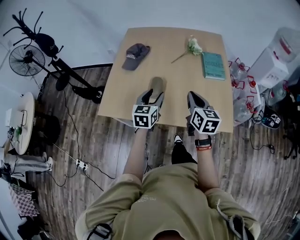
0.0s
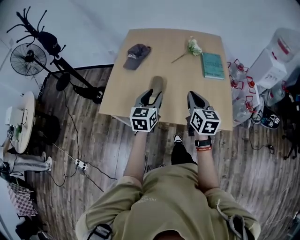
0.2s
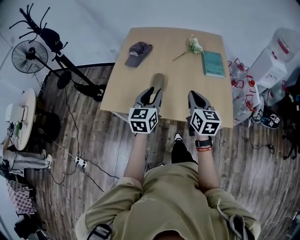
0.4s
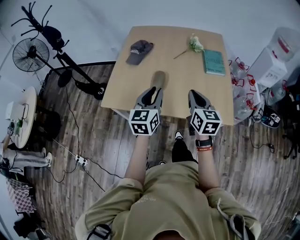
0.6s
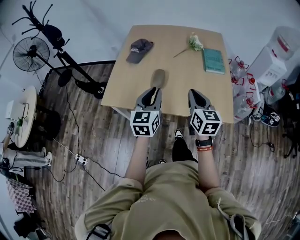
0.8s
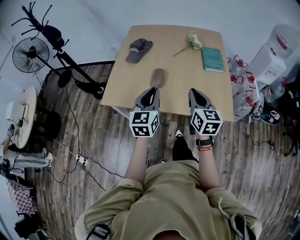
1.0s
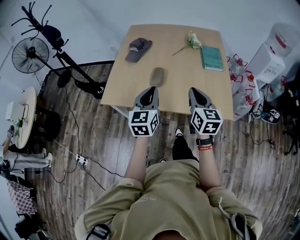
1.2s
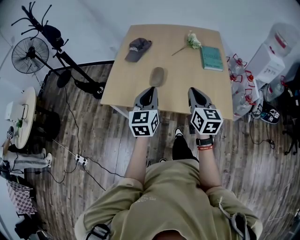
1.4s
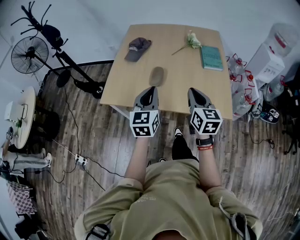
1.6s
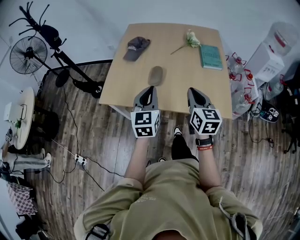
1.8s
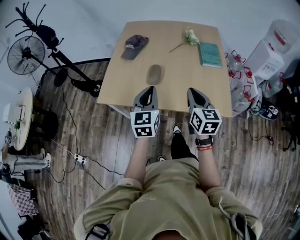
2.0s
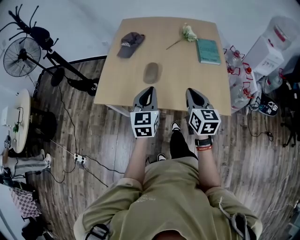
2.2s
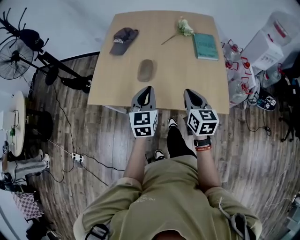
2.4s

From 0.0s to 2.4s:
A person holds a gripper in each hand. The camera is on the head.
From 0.0s to 1.2s: The left gripper travels backward and upward by roughly 15 cm, and closes. Meanwhile the right gripper moves backward, some 10 cm.
From 1.2s to 2.4s: The right gripper heads downward and forward, covering roughly 10 cm. The left gripper travels forward and downward by about 10 cm.

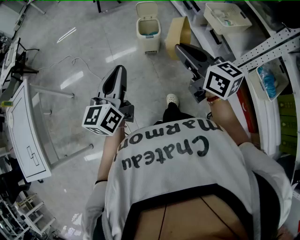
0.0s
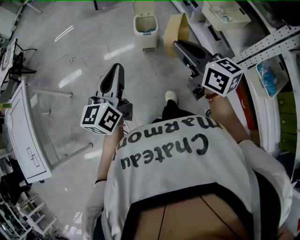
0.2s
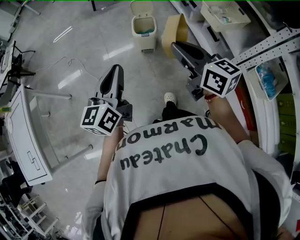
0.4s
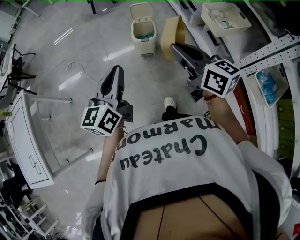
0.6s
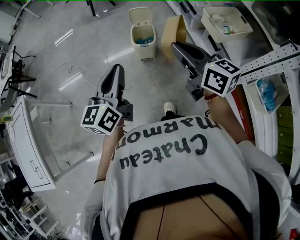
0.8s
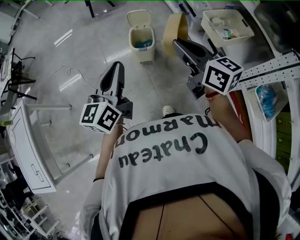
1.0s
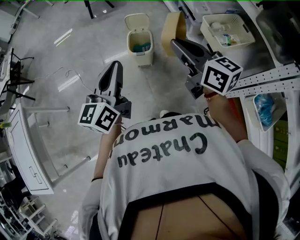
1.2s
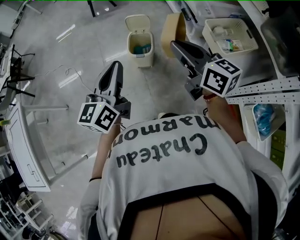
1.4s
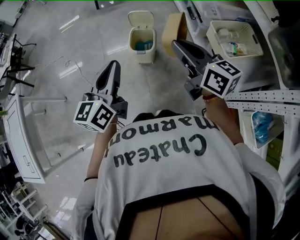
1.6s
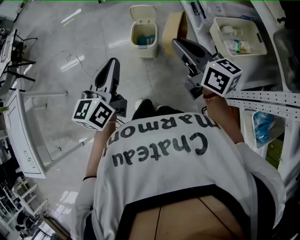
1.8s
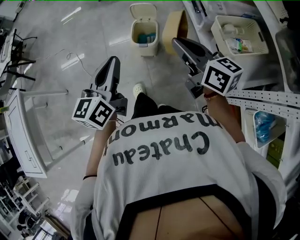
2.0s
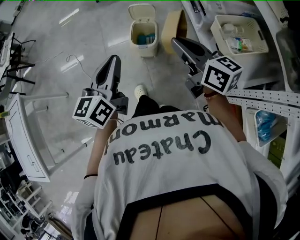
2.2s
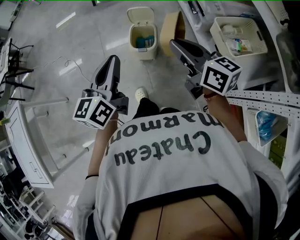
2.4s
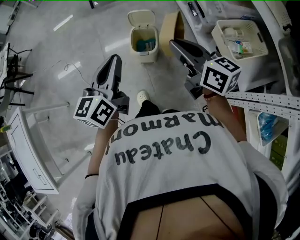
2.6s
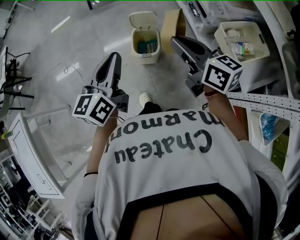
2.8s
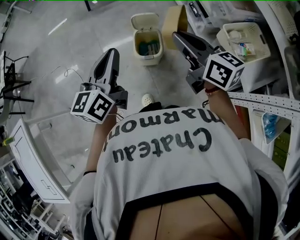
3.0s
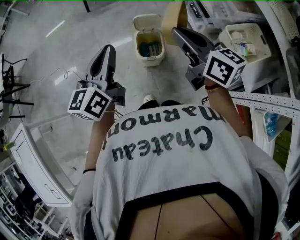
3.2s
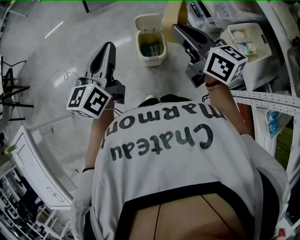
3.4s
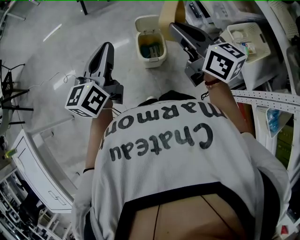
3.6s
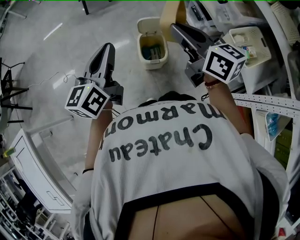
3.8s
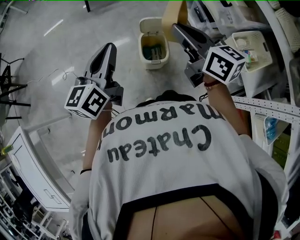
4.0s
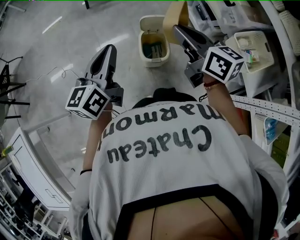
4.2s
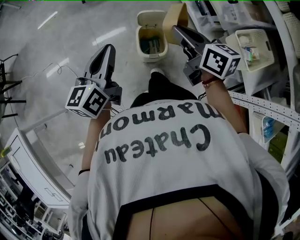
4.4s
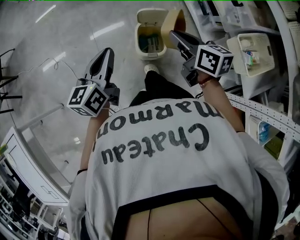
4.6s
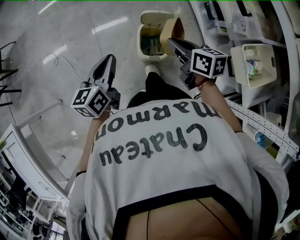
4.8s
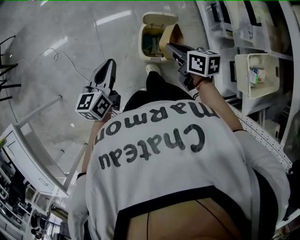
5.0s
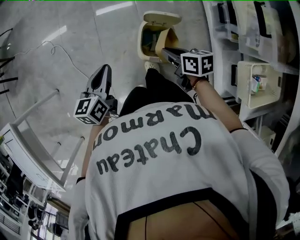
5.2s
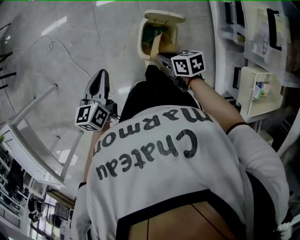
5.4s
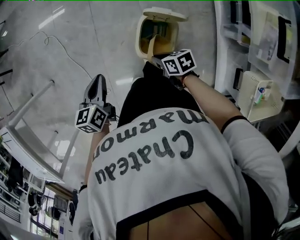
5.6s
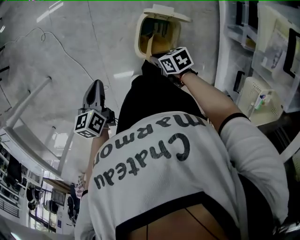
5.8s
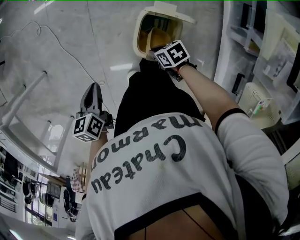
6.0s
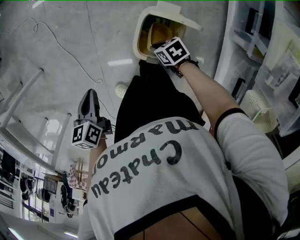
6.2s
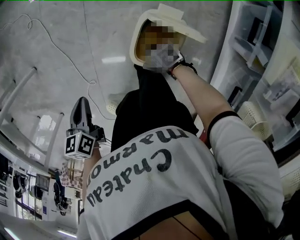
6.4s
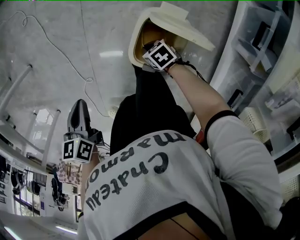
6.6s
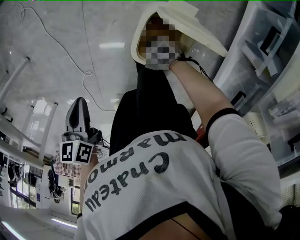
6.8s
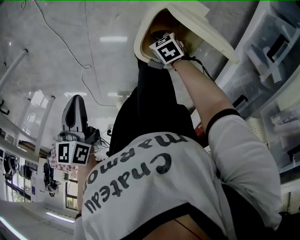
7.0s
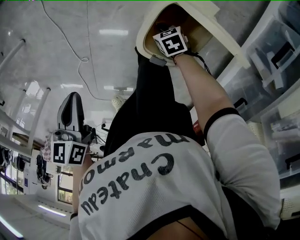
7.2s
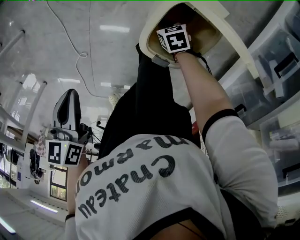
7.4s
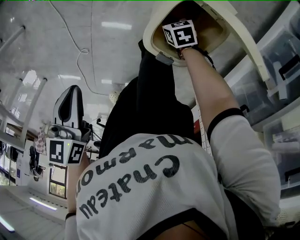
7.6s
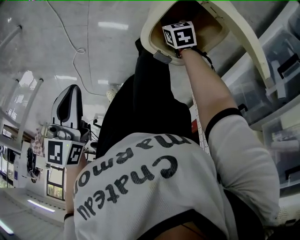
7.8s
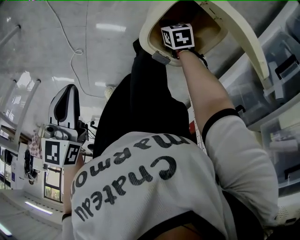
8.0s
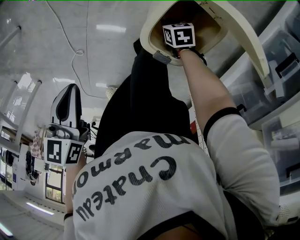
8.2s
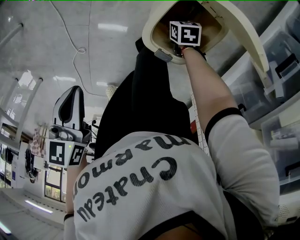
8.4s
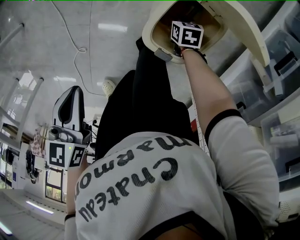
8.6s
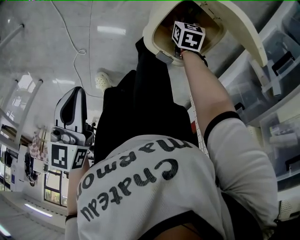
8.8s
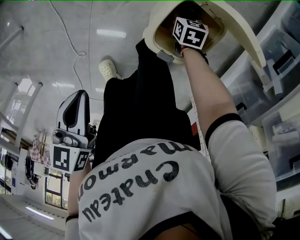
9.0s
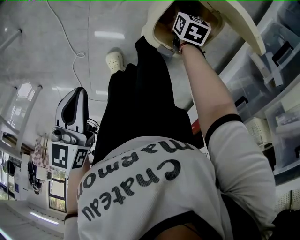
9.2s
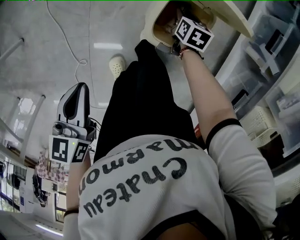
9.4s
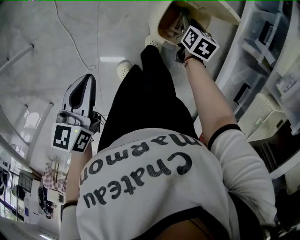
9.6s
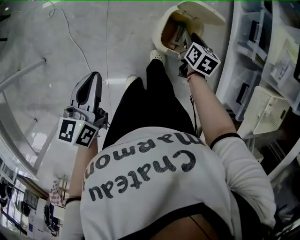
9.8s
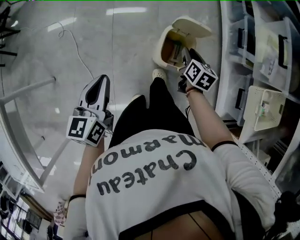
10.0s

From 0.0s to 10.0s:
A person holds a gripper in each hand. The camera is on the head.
From 0.0s to 1.4s: The grippers both shift forward and to the right by about 25 cm.
From 1.4s to 2.8s: Both grippers move forward, roughly 10 cm.
From 2.8s to 4.2s: Both grippers travel together forward and to the left, roughly 15 cm.
From 4.2s to 5.8s: Both grippers move downward, some 40 cm. The left gripper tilts its fingers some 40 degrees downward; the right gripper angles its fingers downward, by some 40 degrees.
From 5.8s to 7.2s: The two grippers travel together, to the left, roughly 50 cm. The right gripper heads downward, covering some 25 cm, and turns by about 30 degrees.
From 7.2s to 8.6s: The right gripper heads to the right, covering roughly 5 cm, changes its angle by some 20 degrees, and opens its fingers.
From 8.6s to 10.0s: The left gripper moves upward, some 20 cm, and angles its fingers upward, by roughly 30 degrees. The right gripper goes roughly 40 cm upward, and swivels some 50 degrees.

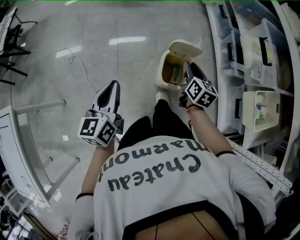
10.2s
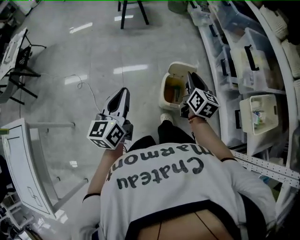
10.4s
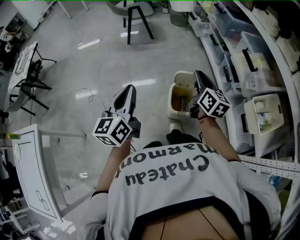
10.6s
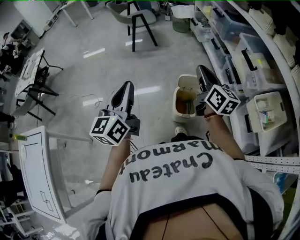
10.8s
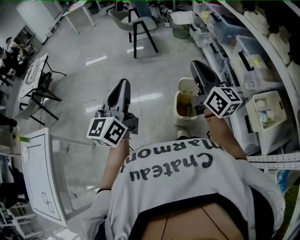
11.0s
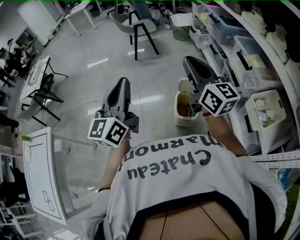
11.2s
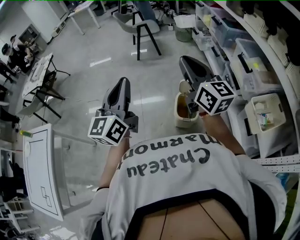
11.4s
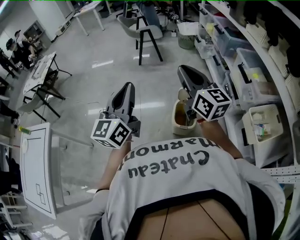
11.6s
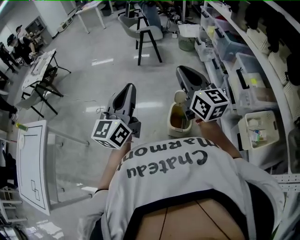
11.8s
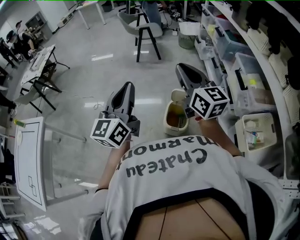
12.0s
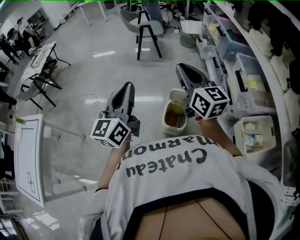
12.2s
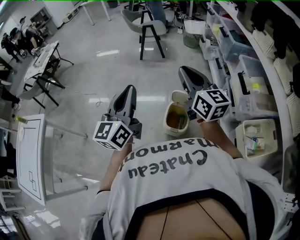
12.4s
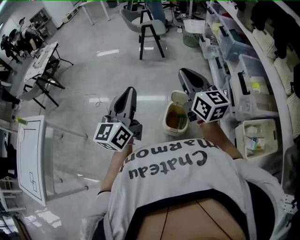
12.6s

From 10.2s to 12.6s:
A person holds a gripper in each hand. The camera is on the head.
From 10.2s to 11.4s: The grippers both shift upward by approximately 30 cm. The right gripper tilts its fingers approximately 40 degrees upward. Meanwhile the left gripper changes its angle by about 30 degrees.
From 11.4s to 12.6s: The left gripper shifts approximately 10 cm to the right. Meanwhile the right gripper shifts approximately 10 cm to the right and forward.

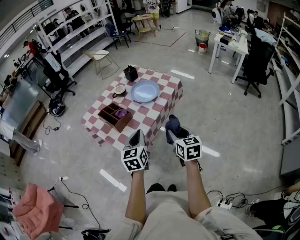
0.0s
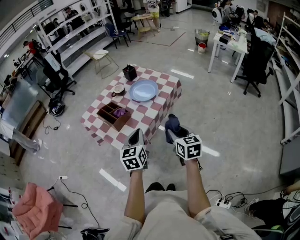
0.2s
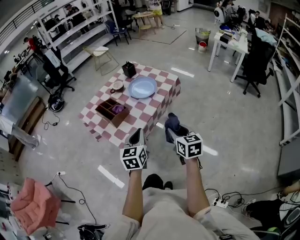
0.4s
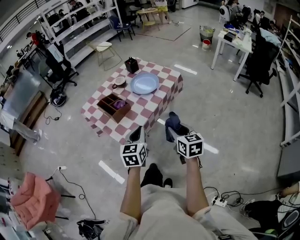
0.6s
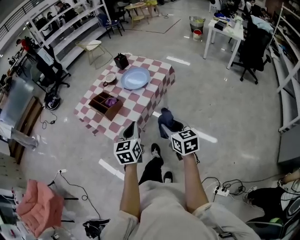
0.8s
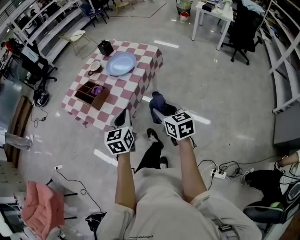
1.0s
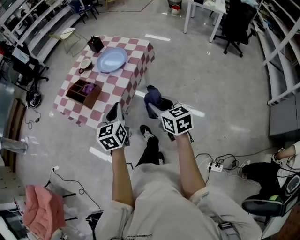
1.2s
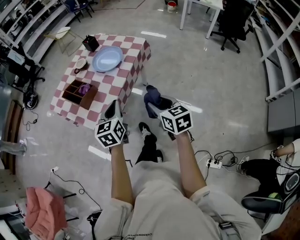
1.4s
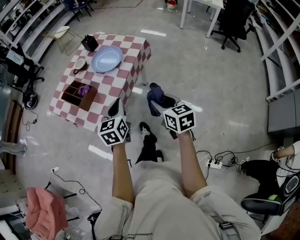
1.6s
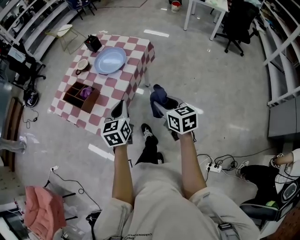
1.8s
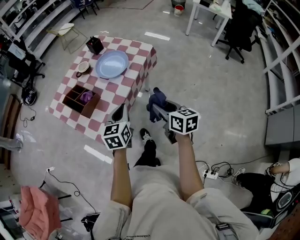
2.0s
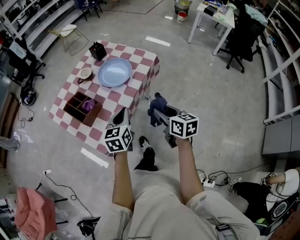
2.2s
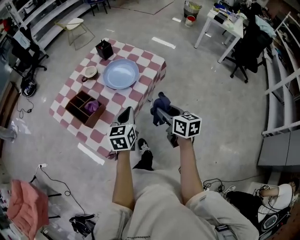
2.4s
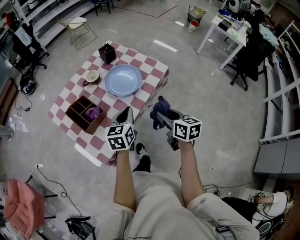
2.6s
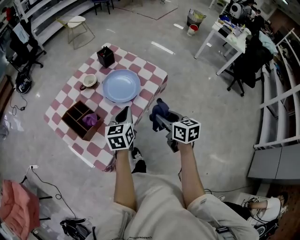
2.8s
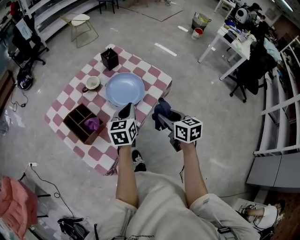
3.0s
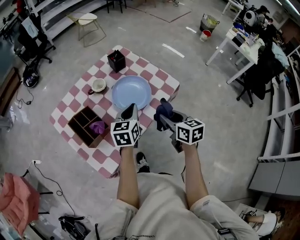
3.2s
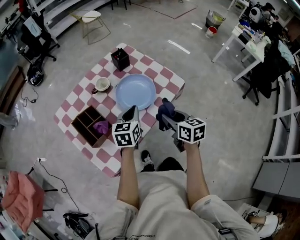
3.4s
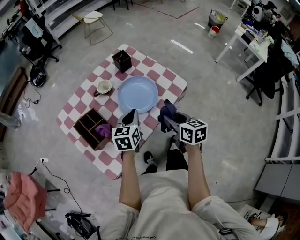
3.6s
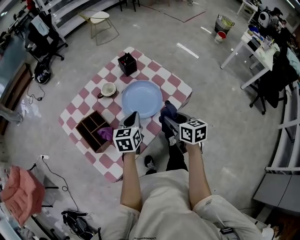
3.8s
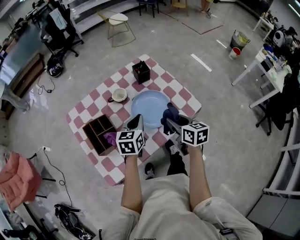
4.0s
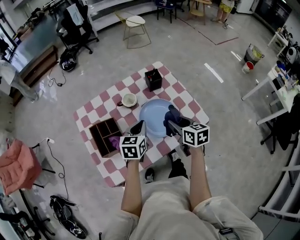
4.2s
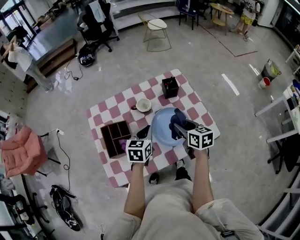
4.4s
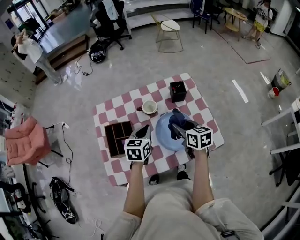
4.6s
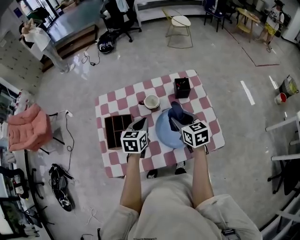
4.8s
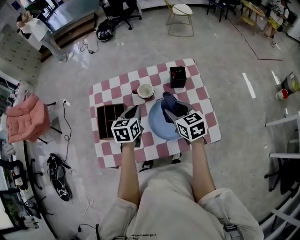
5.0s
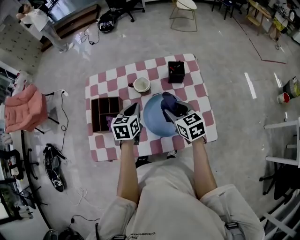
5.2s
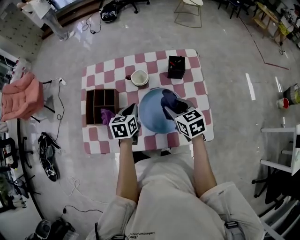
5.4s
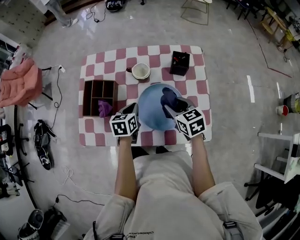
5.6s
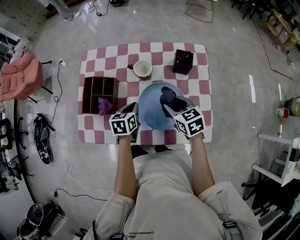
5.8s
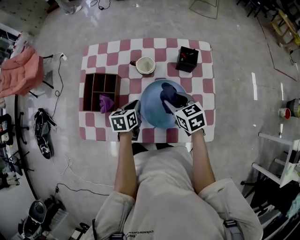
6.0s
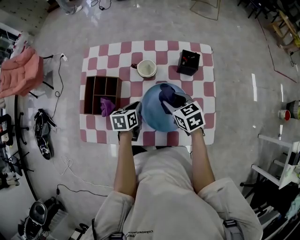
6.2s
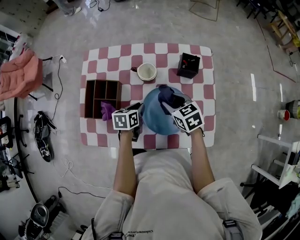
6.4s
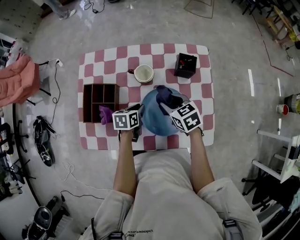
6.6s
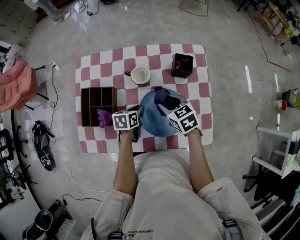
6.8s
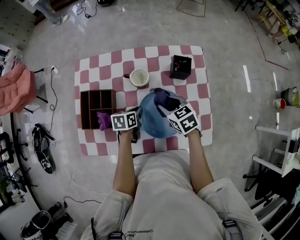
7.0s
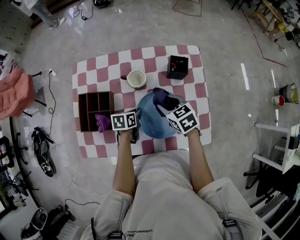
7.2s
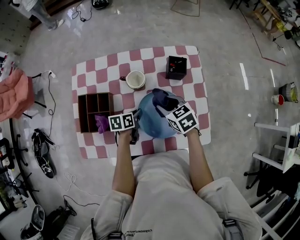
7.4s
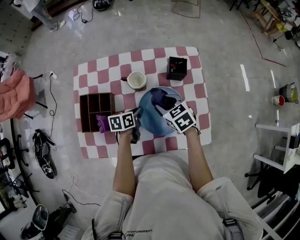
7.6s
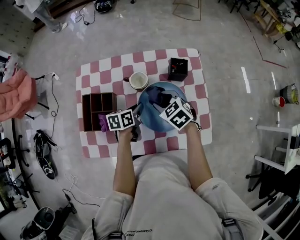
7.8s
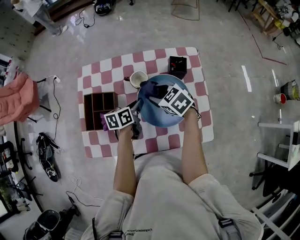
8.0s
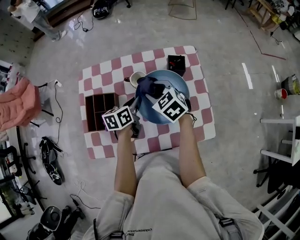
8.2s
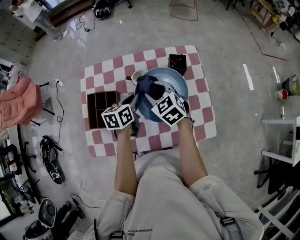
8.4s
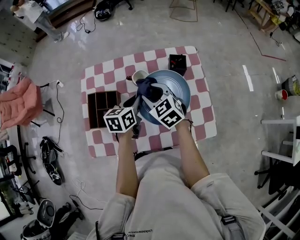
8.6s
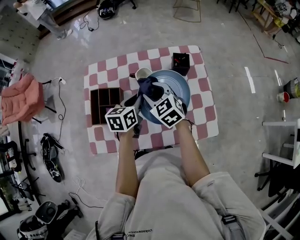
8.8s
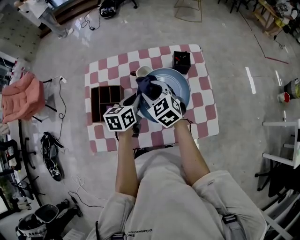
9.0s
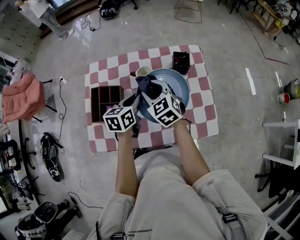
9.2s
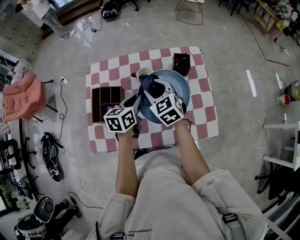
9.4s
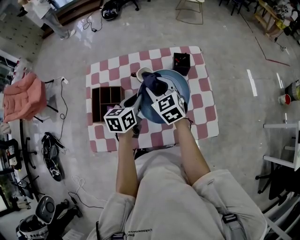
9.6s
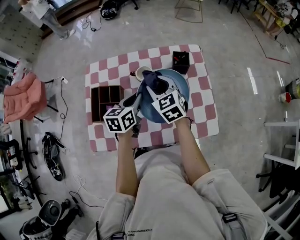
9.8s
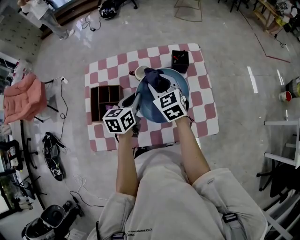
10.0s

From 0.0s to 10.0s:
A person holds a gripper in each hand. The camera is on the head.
From 0.0s to 1.4s: Both grippers move to the right, roughly 5 cm.
From 1.4s to 2.8s: Both grippers move forward, roughly 25 cm.
From 2.8s to 4.2s: The right gripper is displaced forward by about 25 cm, and swivels roughly 20 degrees; the left gripper travels forward by about 15 cm.
From 4.2s to 5.8s: The left gripper moves downward, approximately 15 cm, and swivels about 40 degrees. The right gripper changes place by approximately 15 cm, and swivels approximately 40 degrees.
From 5.8s to 7.2s: The right gripper is displaced forward by approximately 5 cm. Meanwhile the left gripper goes some 5 cm downward, and changes its angle by roughly 20 degrees.
From 7.2s to 8.6s: The right gripper moves upward and to the left, about 10 cm, and swivels roughly 20 degrees. The left gripper moves upward, roughly 15 cm, and changes its angle by roughly 20 degrees.
From 8.6s to 10.0s: The grippers make only small movements.
